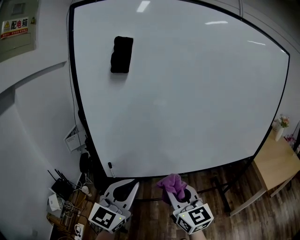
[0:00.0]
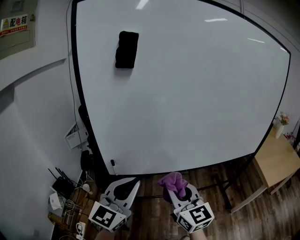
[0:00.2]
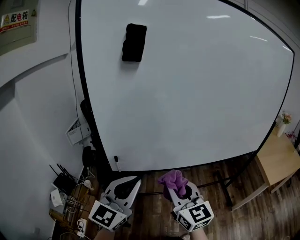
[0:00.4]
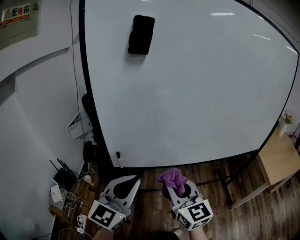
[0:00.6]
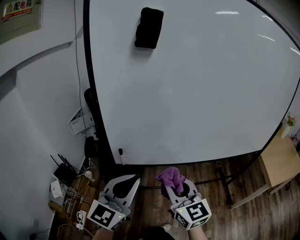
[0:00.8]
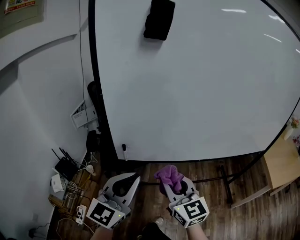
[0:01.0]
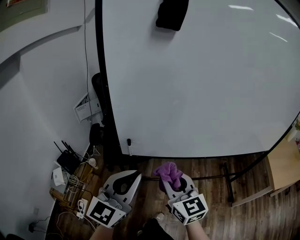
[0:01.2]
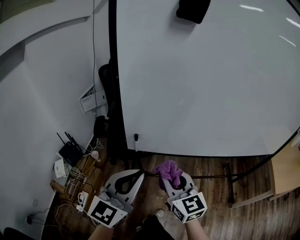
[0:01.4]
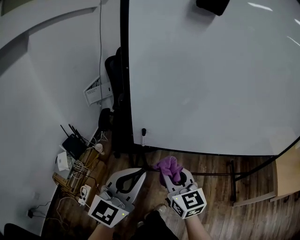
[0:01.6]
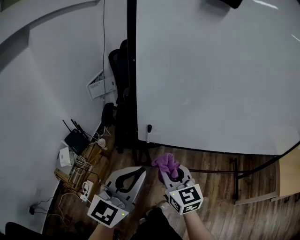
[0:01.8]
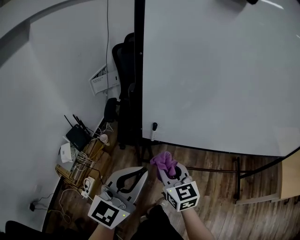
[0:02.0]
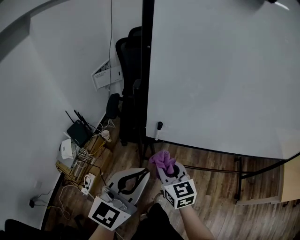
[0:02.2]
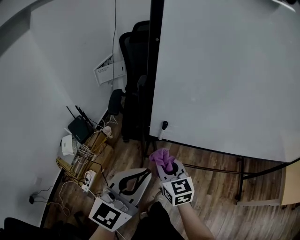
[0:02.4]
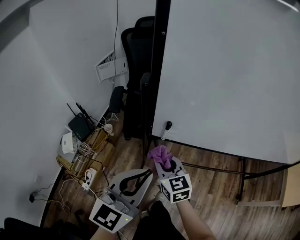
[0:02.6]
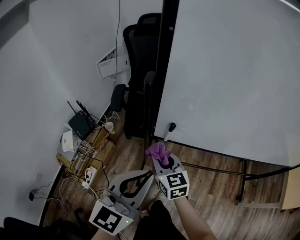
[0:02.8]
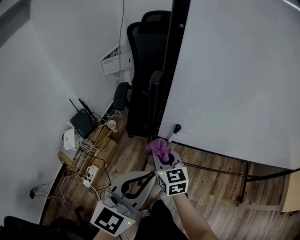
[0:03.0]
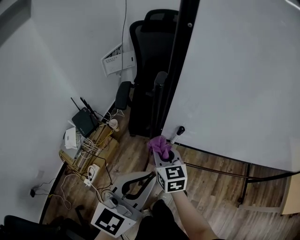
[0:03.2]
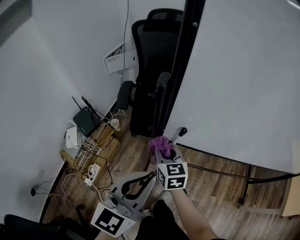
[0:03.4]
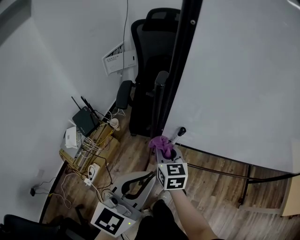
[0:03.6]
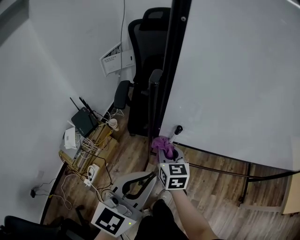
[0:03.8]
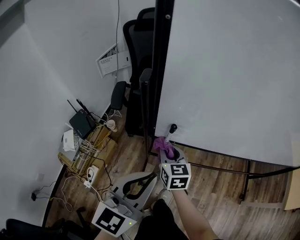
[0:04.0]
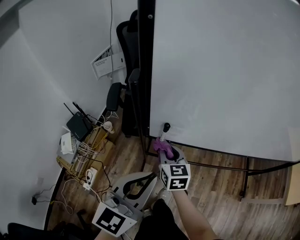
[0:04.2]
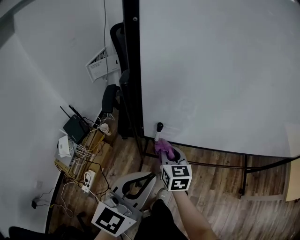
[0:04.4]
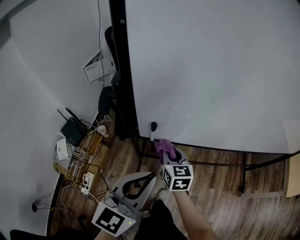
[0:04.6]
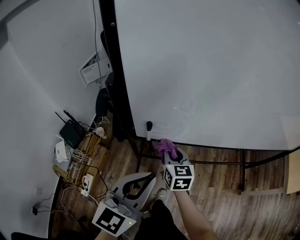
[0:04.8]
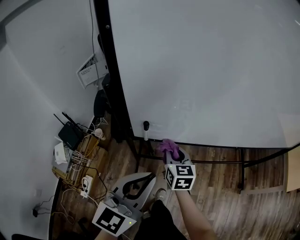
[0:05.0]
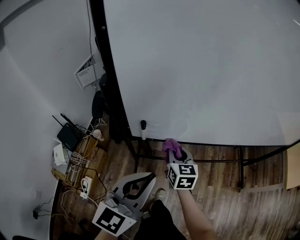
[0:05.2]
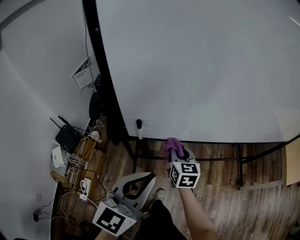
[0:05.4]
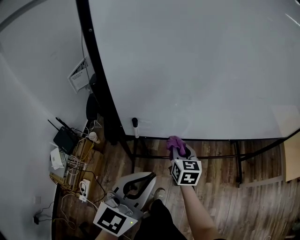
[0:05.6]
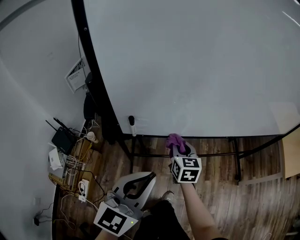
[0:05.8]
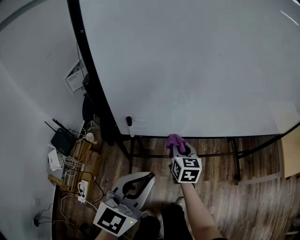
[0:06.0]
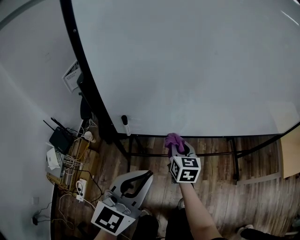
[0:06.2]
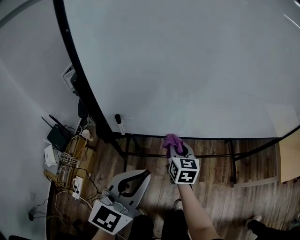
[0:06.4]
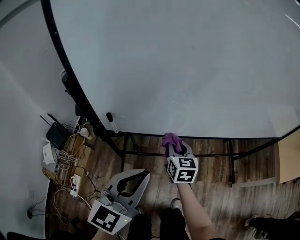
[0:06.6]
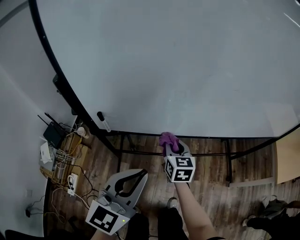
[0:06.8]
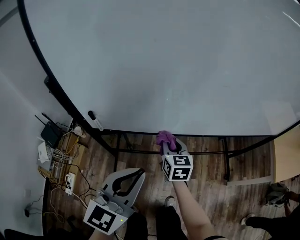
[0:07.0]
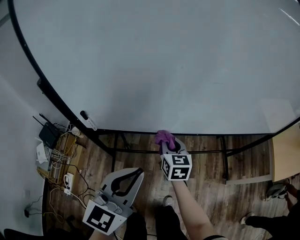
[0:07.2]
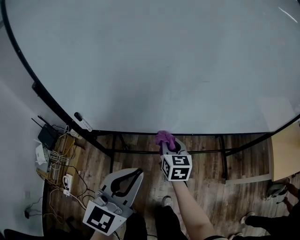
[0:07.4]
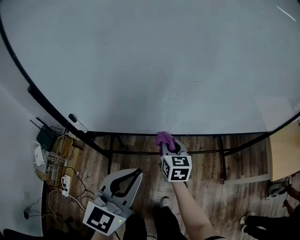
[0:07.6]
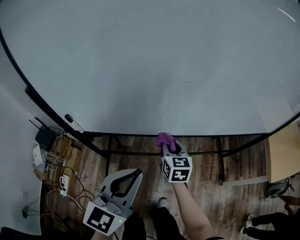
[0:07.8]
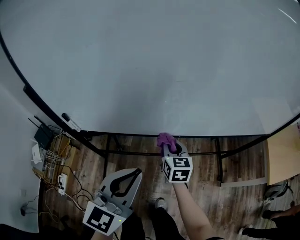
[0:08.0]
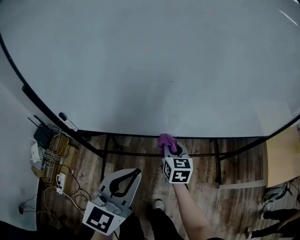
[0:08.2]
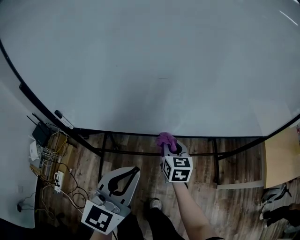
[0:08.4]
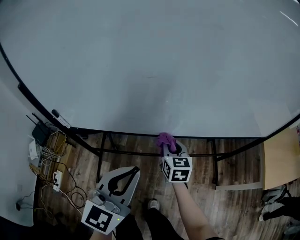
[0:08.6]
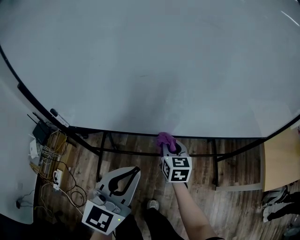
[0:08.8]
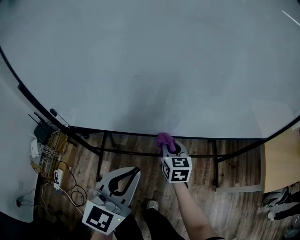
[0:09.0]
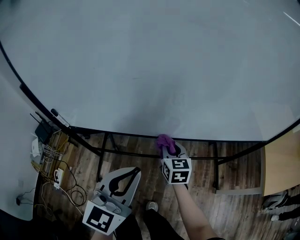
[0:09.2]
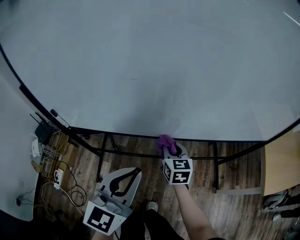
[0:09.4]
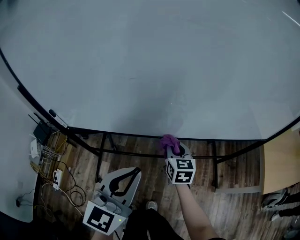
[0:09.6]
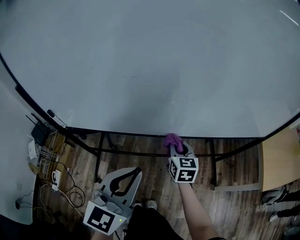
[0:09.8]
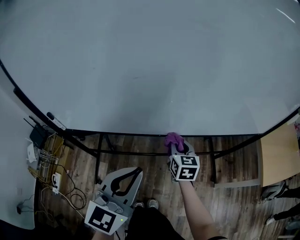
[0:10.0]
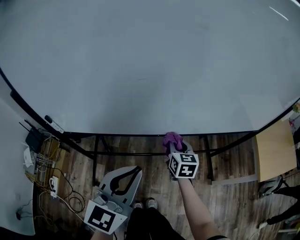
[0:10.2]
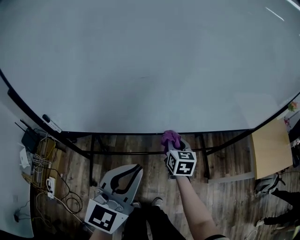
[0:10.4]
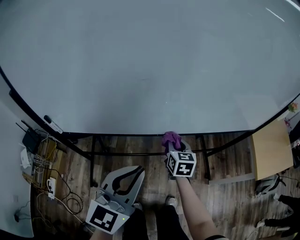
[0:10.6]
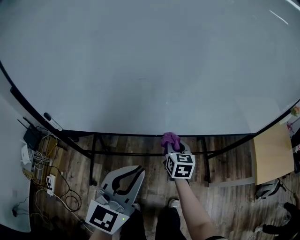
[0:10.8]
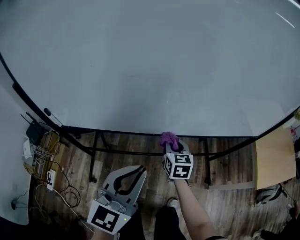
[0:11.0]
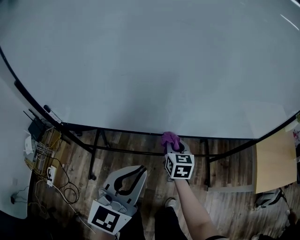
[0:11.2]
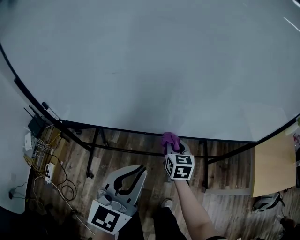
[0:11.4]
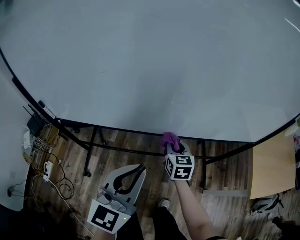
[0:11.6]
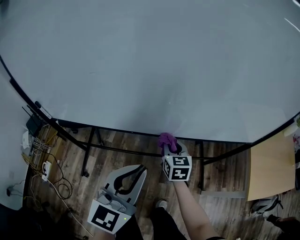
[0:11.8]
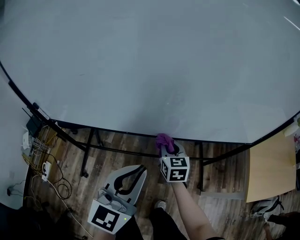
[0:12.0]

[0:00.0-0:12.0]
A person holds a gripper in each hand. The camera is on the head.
0:00.0 to 0:01.6: The grippers both shift to the left and downward by approximately 15 cm.
0:01.6 to 0:03.0: The right gripper heads downward, to the left and forward, covering approximately 25 cm. Meanwhile the left gripper shifts some 10 cm downward and to the left.
0:03.0 to 0:04.4: The right gripper shifts some 10 cm to the right.
0:04.4 to 0:06.0: The left gripper shifts about 5 cm to the right. The right gripper heads to the right, covering roughly 15 cm.
0:06.0 to 0:07.6: Both grippers move to the right, approximately 15 cm.
0:07.6 to 0:09.0: The grippers both shift to the right by some 10 cm.
0:09.0 to 0:10.4: The grippers stay close to where they were, moving slightly.
0:10.4 to 0:12.0: The left gripper is displaced to the right by about 15 cm; the right gripper travels to the right by about 10 cm.

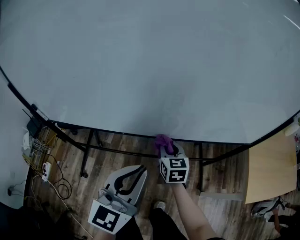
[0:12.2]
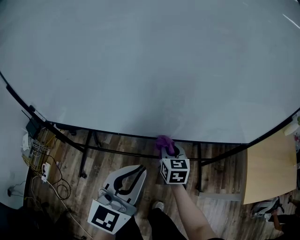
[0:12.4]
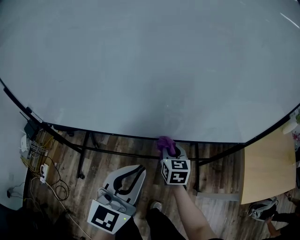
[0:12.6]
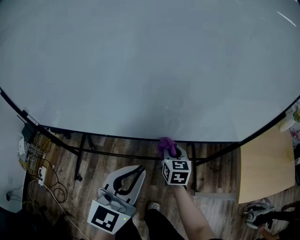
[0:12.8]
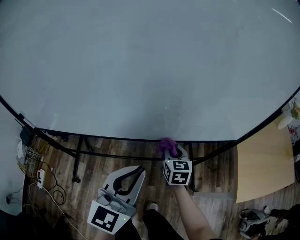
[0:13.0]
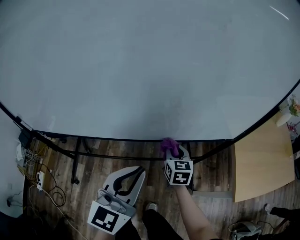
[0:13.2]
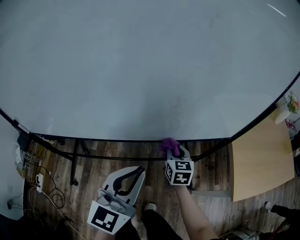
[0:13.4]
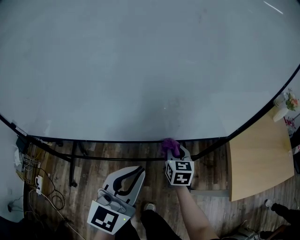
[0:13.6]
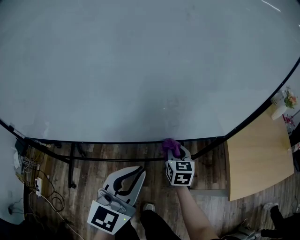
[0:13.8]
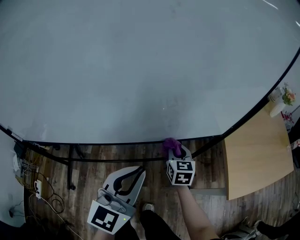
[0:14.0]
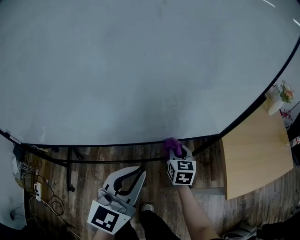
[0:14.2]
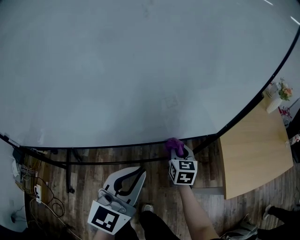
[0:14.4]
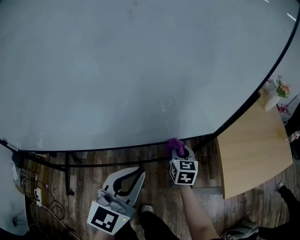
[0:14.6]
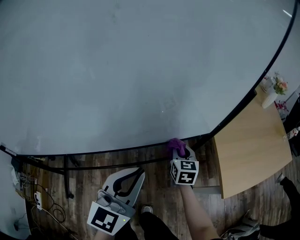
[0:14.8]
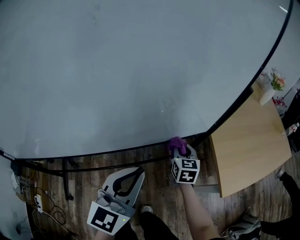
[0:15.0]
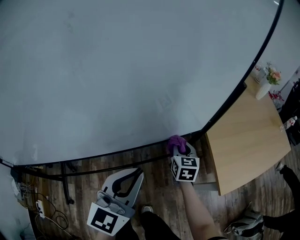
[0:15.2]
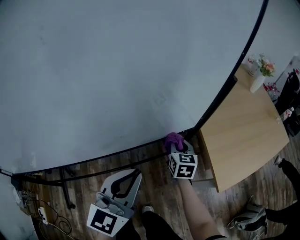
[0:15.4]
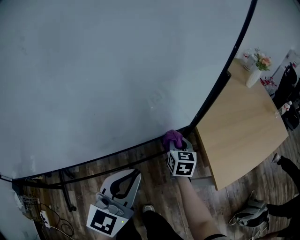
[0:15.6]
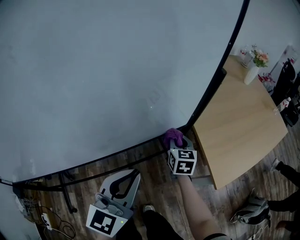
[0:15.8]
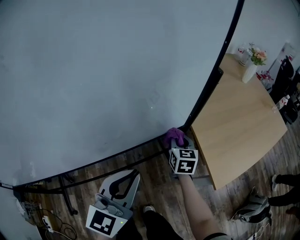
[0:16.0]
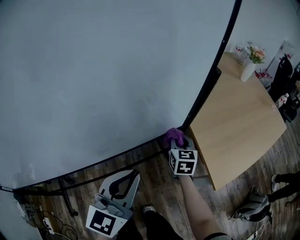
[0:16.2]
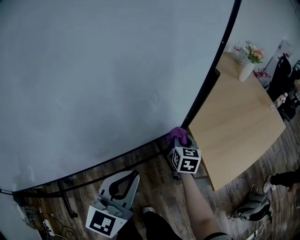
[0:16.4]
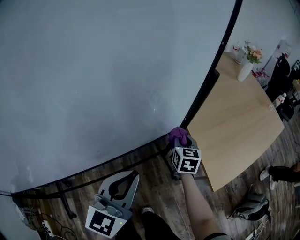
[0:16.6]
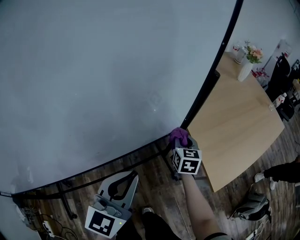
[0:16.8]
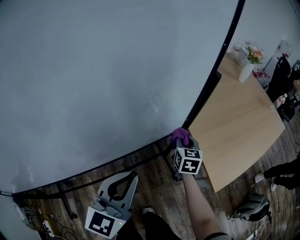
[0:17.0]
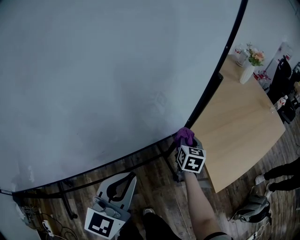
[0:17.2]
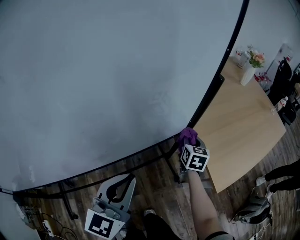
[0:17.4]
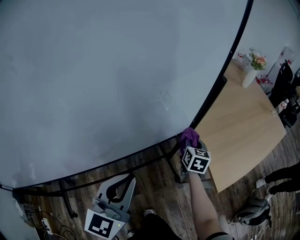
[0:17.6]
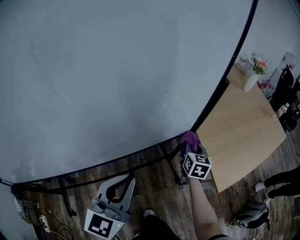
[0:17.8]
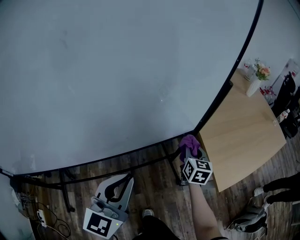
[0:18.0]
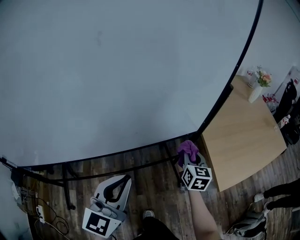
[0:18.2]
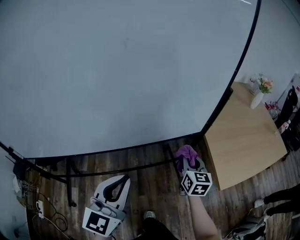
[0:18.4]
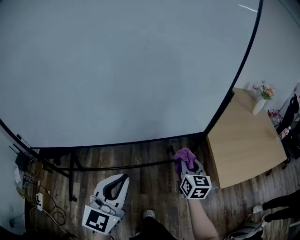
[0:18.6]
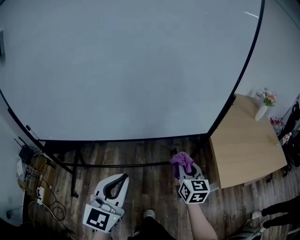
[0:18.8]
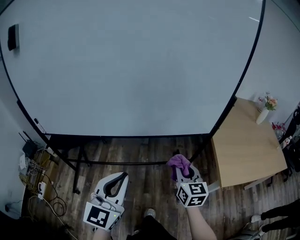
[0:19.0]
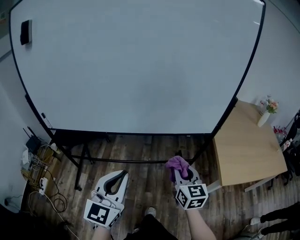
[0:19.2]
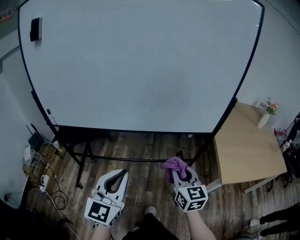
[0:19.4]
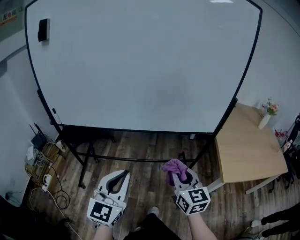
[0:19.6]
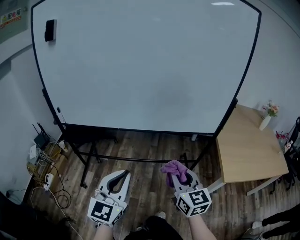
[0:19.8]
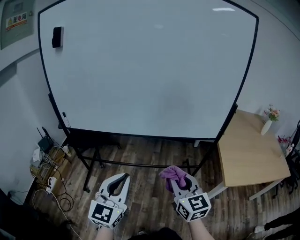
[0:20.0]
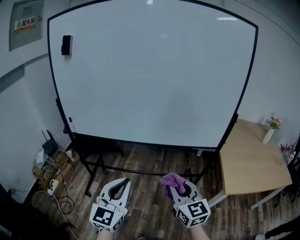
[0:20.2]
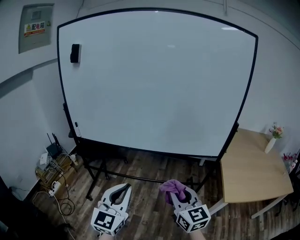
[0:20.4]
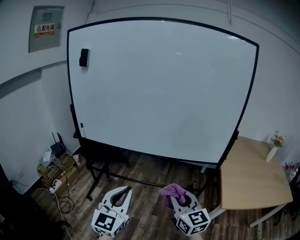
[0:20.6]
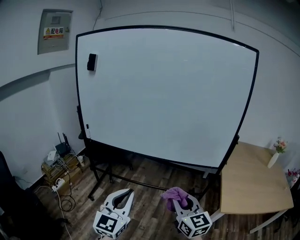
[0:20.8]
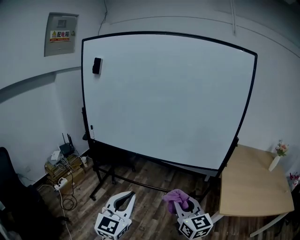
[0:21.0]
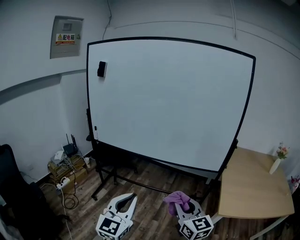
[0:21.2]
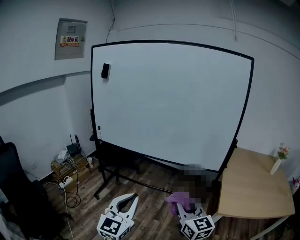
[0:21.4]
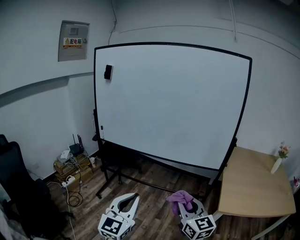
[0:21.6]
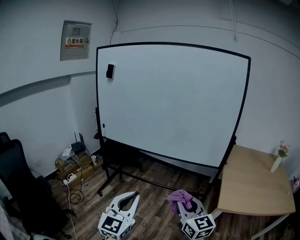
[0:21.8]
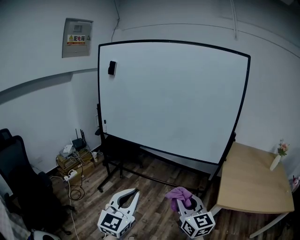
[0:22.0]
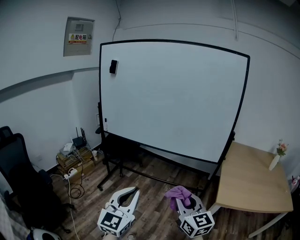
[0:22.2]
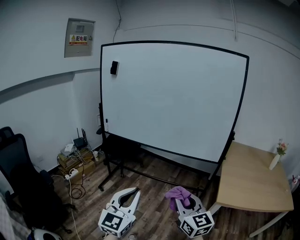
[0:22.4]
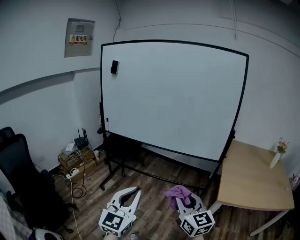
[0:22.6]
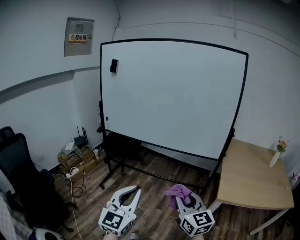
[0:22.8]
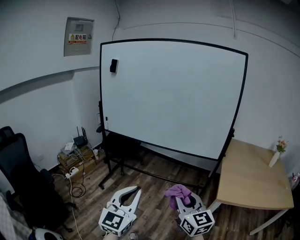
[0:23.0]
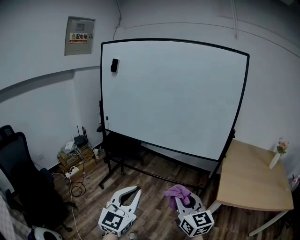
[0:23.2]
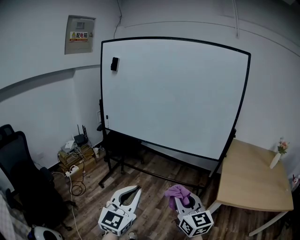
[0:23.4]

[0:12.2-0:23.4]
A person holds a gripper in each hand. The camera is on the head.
0:12.2 to 0:13.8: Both grippers move to the right, about 20 cm.
0:13.8 to 0:15.4: The grippers both shift to the right and forward by approximately 15 cm.
0:15.4 to 0:17.0: The right gripper shifts some 10 cm to the right and forward; the left gripper shifts by about 5 cm.
0:17.0 to 0:18.6: The right gripper heads backward and upward, covering roughly 25 cm, and rotates some 20 degrees; the left gripper travels backward and to the left by some 25 cm, and turns by roughly 20 degrees.
0:18.6 to 0:20.2: The right gripper shifts roughly 35 cm backward, to the left and upward, and rotates about 40 degrees. The left gripper is displaced backward and to the left by roughly 20 cm.
0:20.2 to 0:21.8: The right gripper heads backward and to the right, covering some 20 cm, while the left gripper is displaced backward by roughly 20 cm.
0:21.8 to 0:23.4: There are only small adjustments of the grippers.

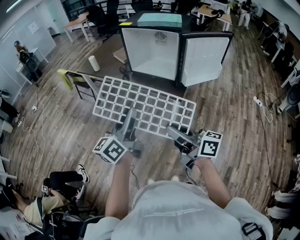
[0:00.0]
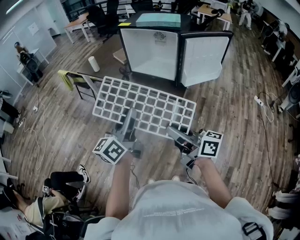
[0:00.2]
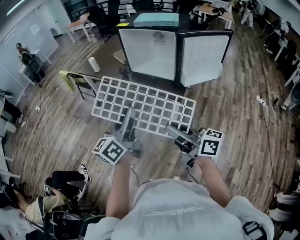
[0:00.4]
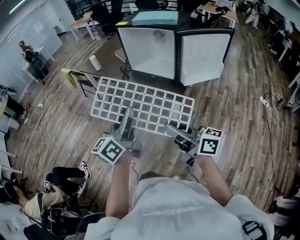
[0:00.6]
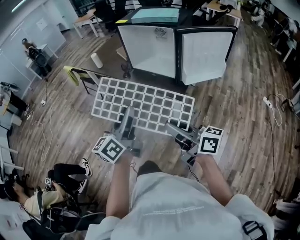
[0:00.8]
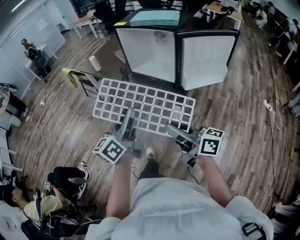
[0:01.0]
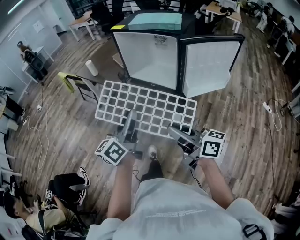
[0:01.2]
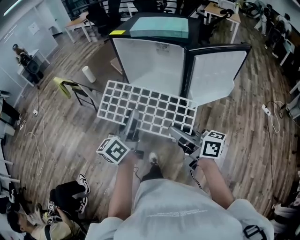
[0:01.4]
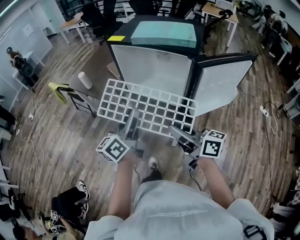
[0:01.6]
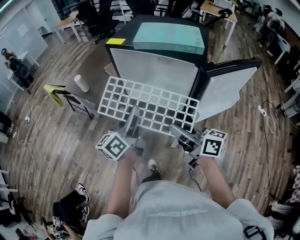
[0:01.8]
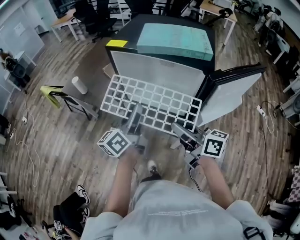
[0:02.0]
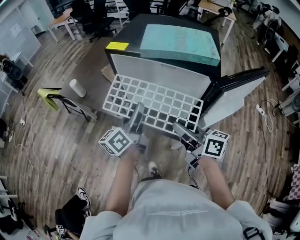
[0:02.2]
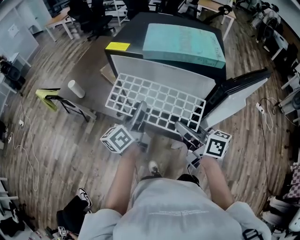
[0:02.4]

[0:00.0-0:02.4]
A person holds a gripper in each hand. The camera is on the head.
0:00.0 to 0:01.2: Both grippers move forward and to the right, roughly 15 cm.
0:01.2 to 0:02.4: The grippers both shift forward by about 30 cm.
